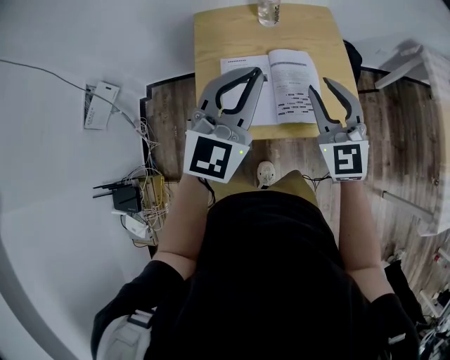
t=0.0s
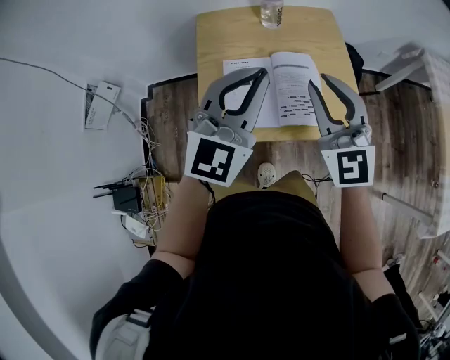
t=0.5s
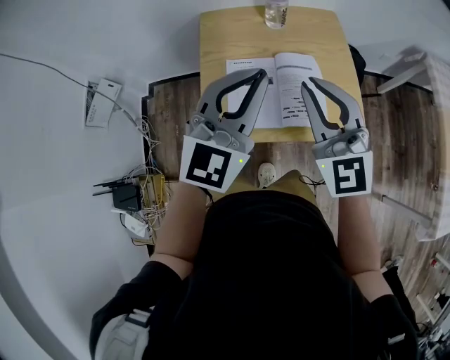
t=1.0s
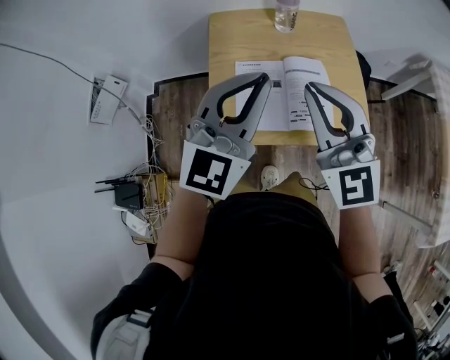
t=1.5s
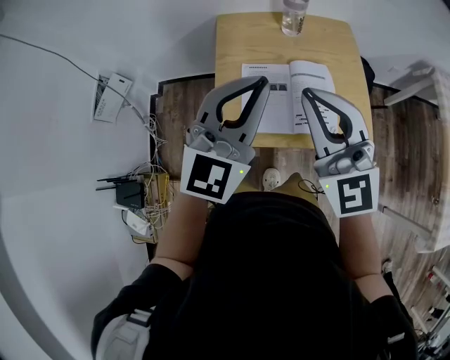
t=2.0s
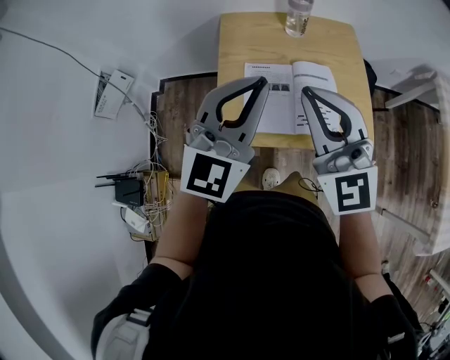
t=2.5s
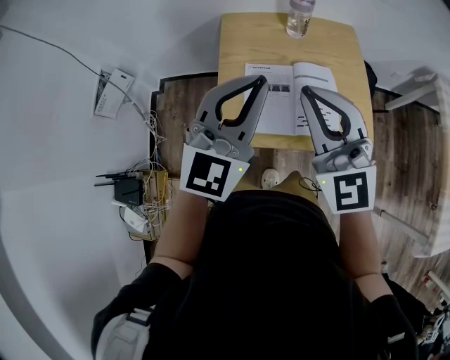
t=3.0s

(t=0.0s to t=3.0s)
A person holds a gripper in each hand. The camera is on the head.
t=0.0s - t=1.5s: The right gripper shifts about 10 cm upward and to the left, and closes up.
t=1.5s - t=3.0s: The grippers move only a little.

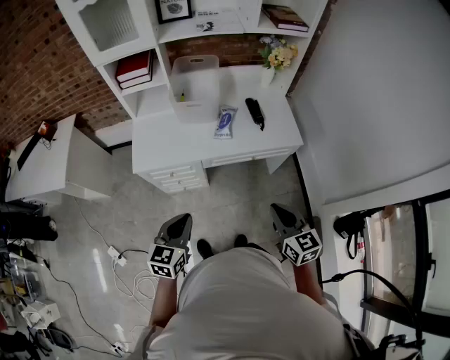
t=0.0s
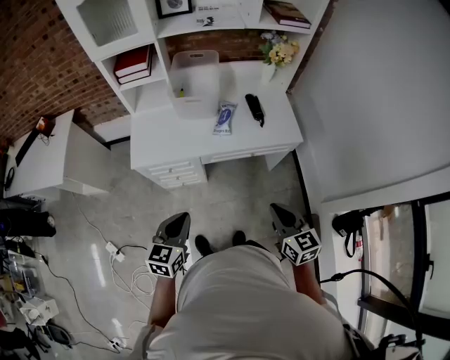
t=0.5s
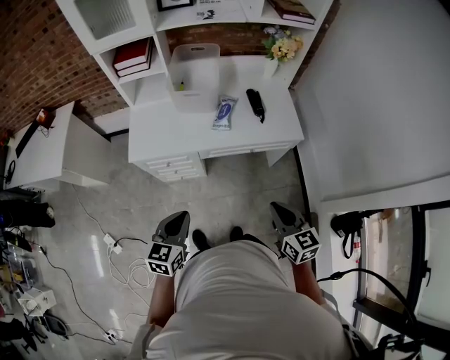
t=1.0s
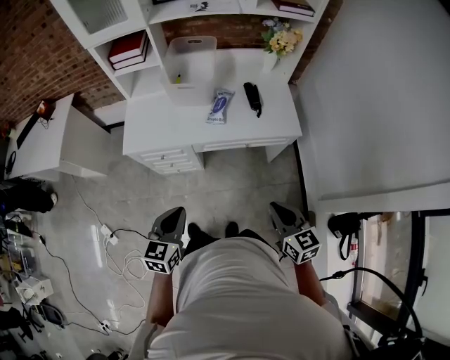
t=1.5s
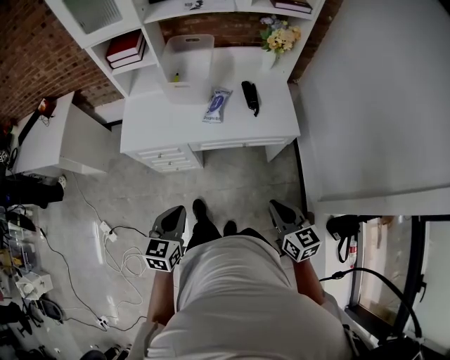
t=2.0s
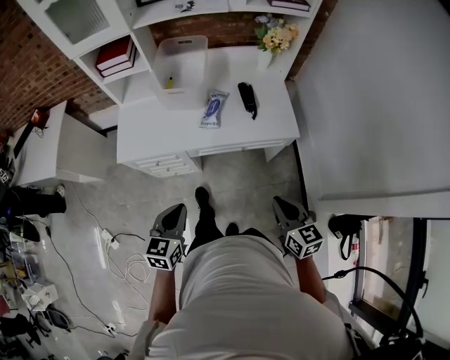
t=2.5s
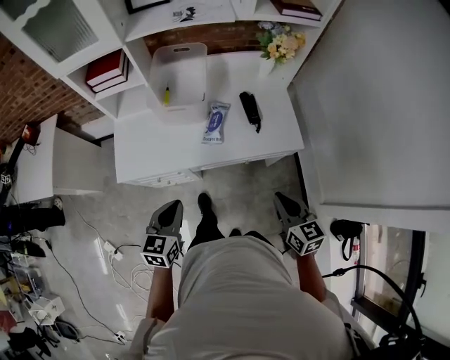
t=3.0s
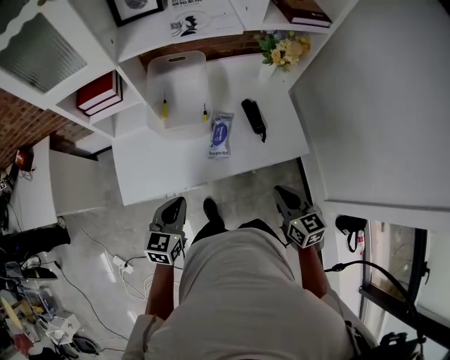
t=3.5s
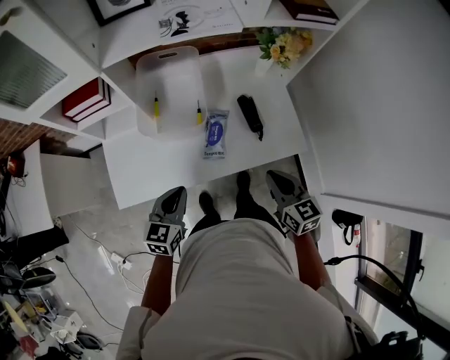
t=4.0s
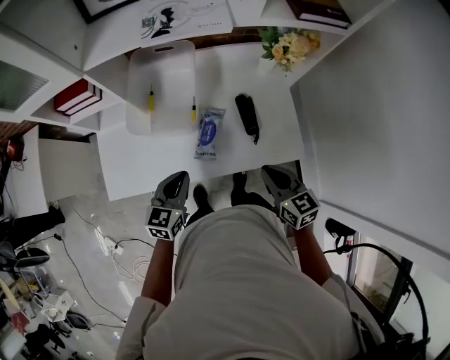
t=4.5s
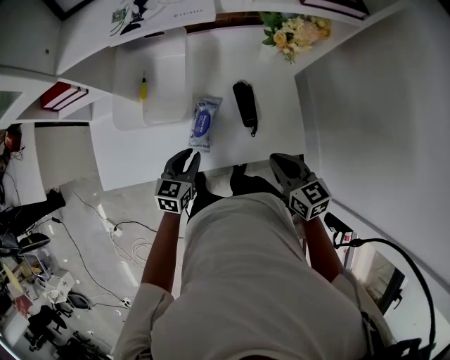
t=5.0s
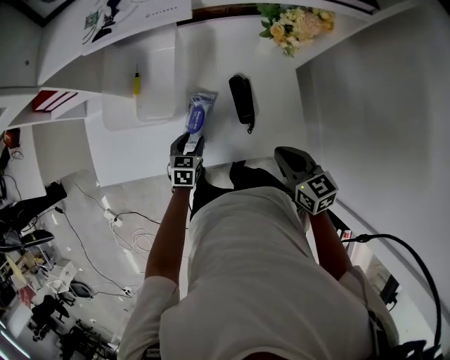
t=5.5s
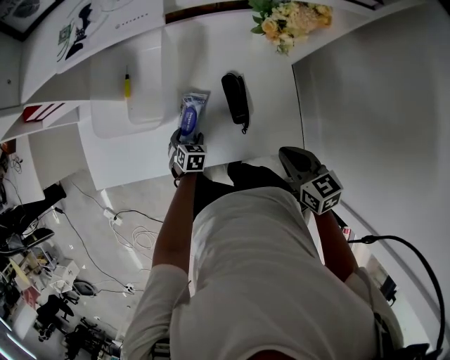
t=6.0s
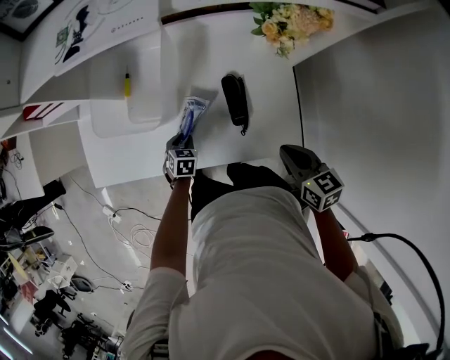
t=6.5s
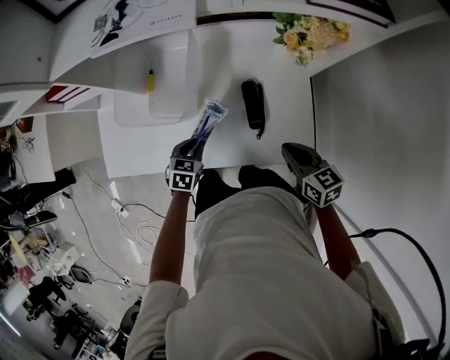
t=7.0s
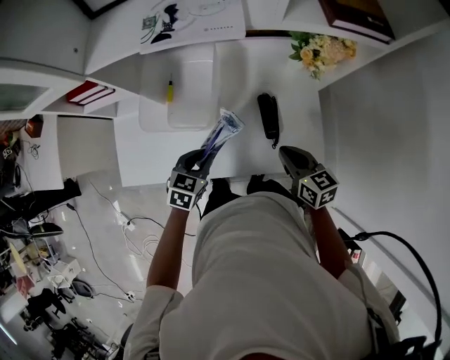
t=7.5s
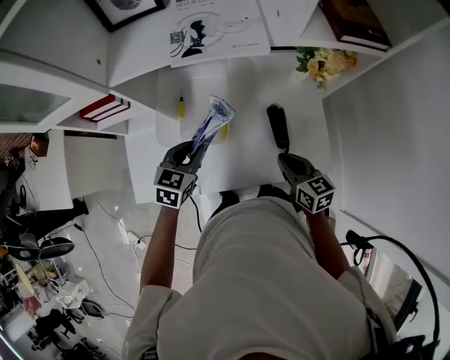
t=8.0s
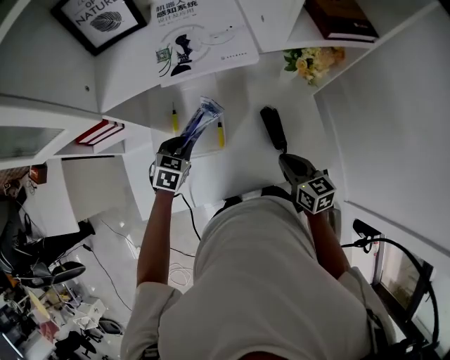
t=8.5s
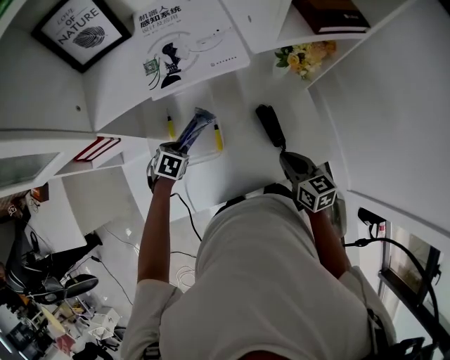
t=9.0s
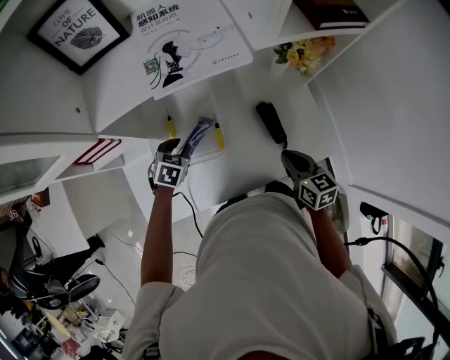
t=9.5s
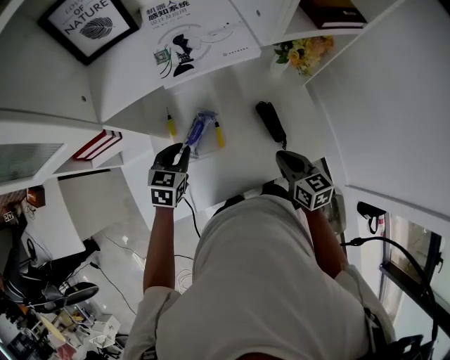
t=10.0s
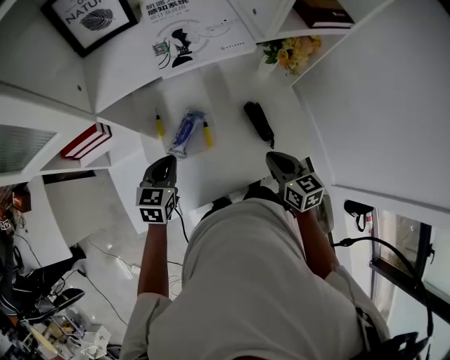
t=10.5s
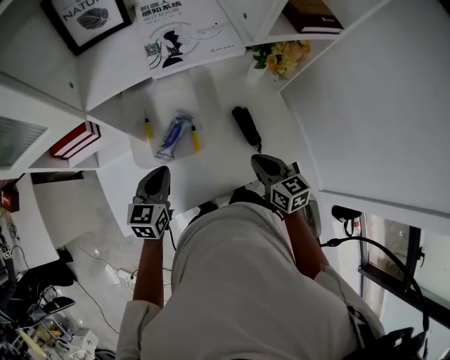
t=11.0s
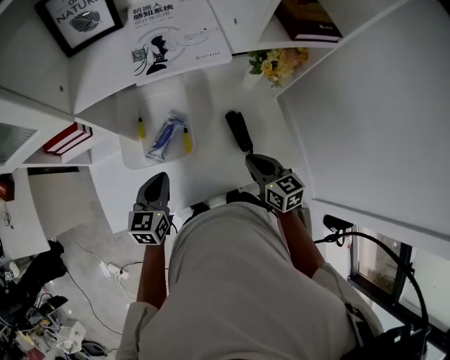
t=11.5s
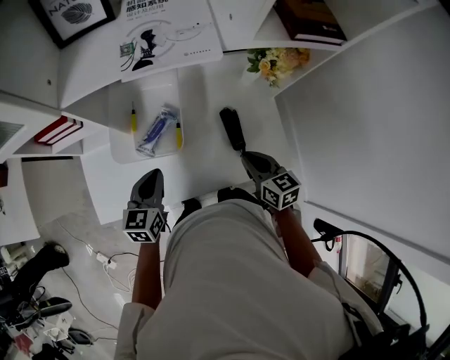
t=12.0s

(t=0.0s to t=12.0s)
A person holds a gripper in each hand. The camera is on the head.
t=0.0s - t=2.0s: The grippers both shift to the right by approximately 10 cm.
t=2.0s - t=4.0s: The grippers both shift forward by some 30 cm.
t=4.0s - t=6.0s: The left gripper moves downward, to the right and forward, roughly 35 cm, angles its fingers downward, by some 40 degrees, and opens up. Meanwhile the right gripper goes approximately 20 cm to the right, forward and downward, and rotates some 20 degrees.
t=6.0s - t=8.0s: The left gripper heads upward, covering some 30 cm, swivels roughly 30 degrees, and closes its fingers, while the right gripper shifts some 15 cm to the left and forward.
t=8.0s - t=10.0s: The left gripper shifts approximately 5 cm forward and to the left, and reaches approximately 15 cm downward, then returns.
t=10.0s - t=12.0s: The left gripper heads backward, covering roughly 10 cm, and turns by about 30 degrees.

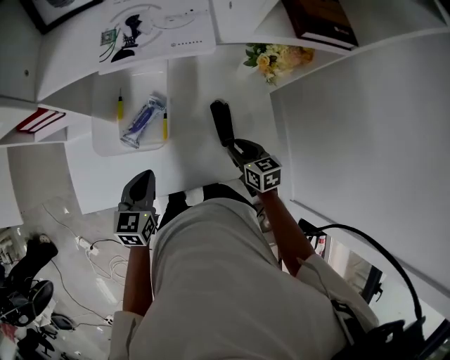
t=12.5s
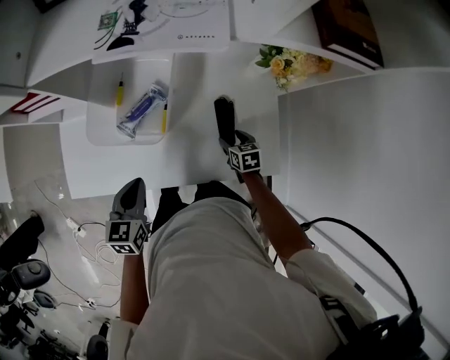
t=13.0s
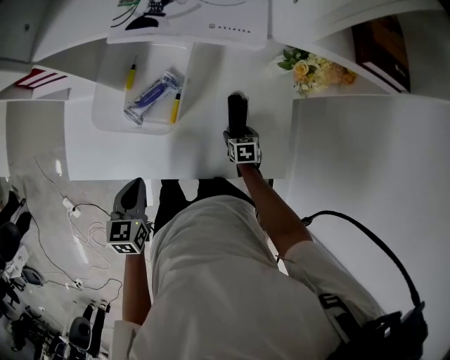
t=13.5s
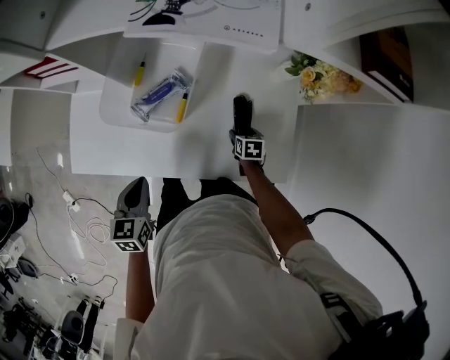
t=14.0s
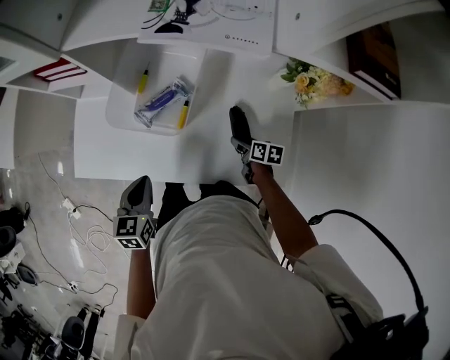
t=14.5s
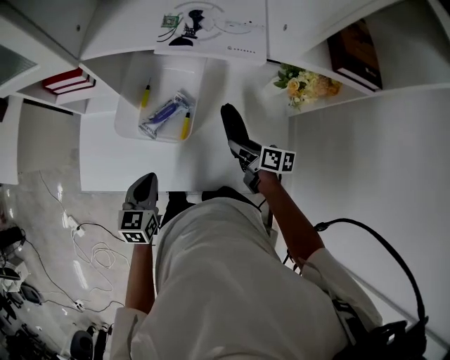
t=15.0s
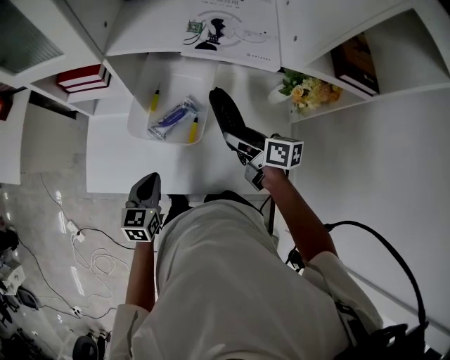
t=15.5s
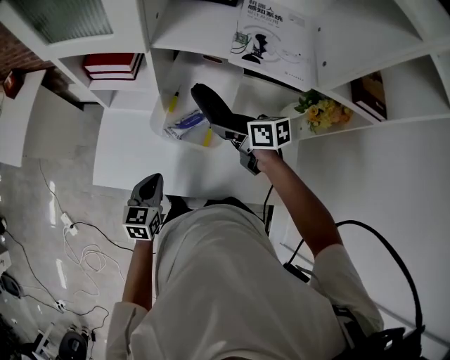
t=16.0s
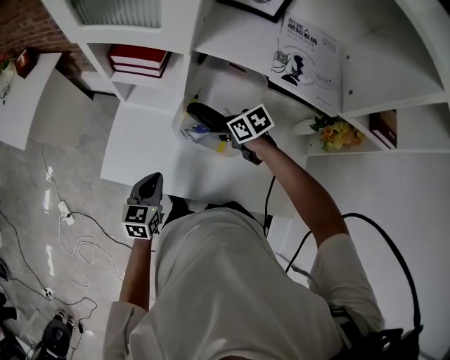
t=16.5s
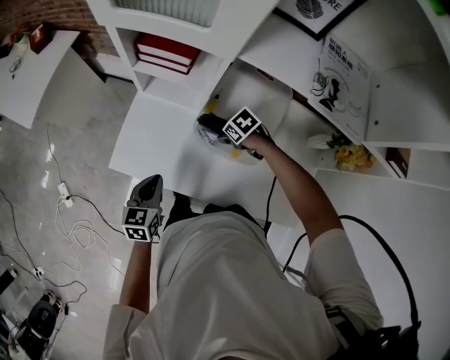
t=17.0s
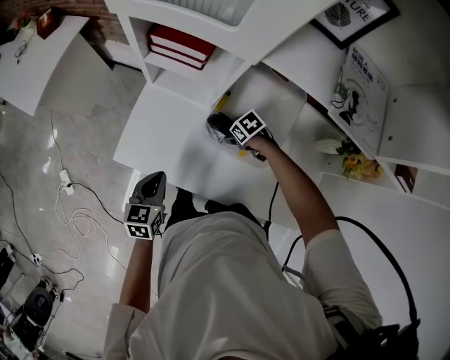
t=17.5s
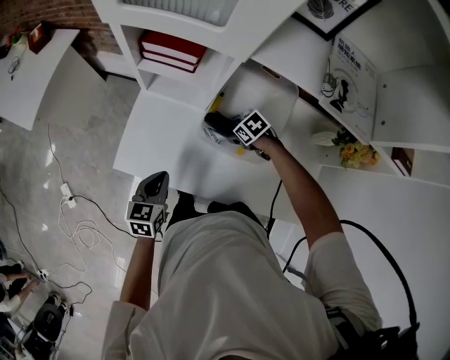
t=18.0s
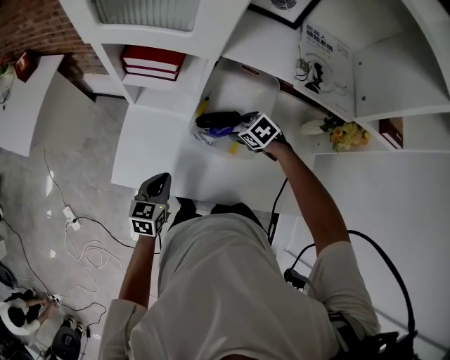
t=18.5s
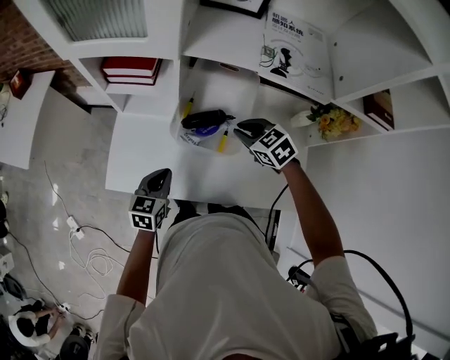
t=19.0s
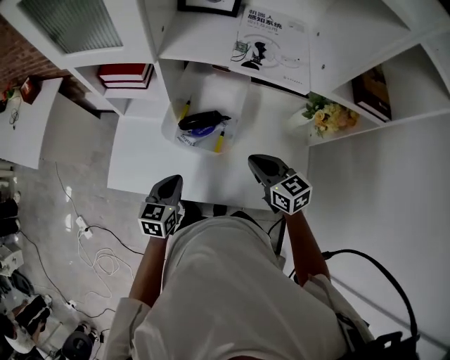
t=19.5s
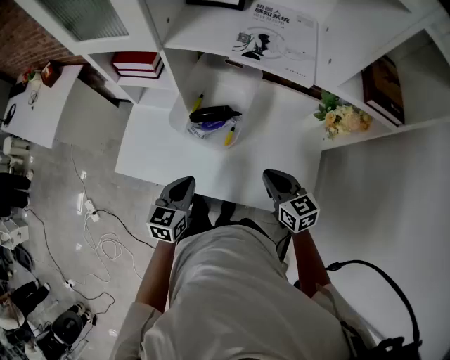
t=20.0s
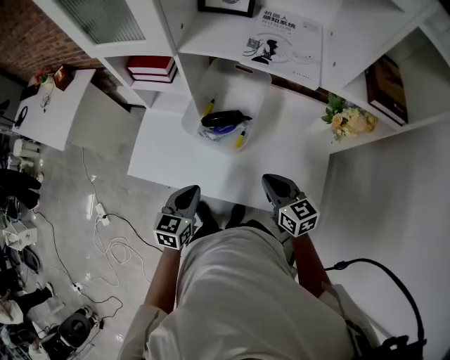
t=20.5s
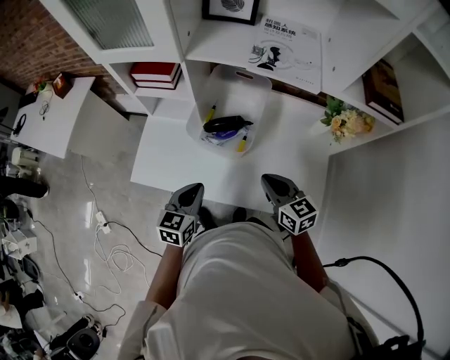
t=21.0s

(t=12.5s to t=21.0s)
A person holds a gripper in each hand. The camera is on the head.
t=12.5s - t=14.5s: The right gripper moves downward, roughly 15 cm, turns by about 30 degrees, and opens up; the left gripper shifts some 5 cm backward.
t=14.5s - t=16.5s: The right gripper goes about 35 cm to the left, forward and upward, and rolls counterclockwise, seen from behind, by approximately 50 degrees; the left gripper travels to the left and forward by some 15 cm.
t=16.5s - t=19.0s: The right gripper travels downward and back again, some 15 cm each way, rotates approximately 30 degrees, and closes up.
t=19.0s - t=21.0s: The right gripper goes approximately 15 cm backward, and changes its angle by approximately 30 degrees; the left gripper is displaced backward, to the right and upward by roughly 15 cm.

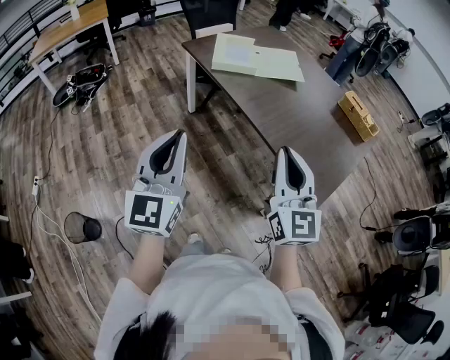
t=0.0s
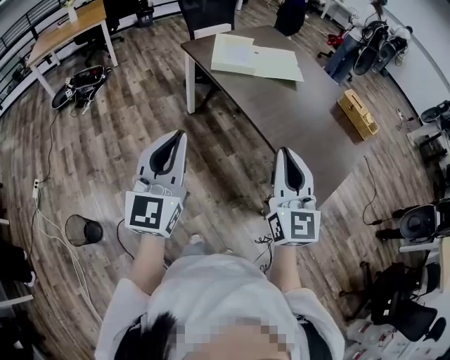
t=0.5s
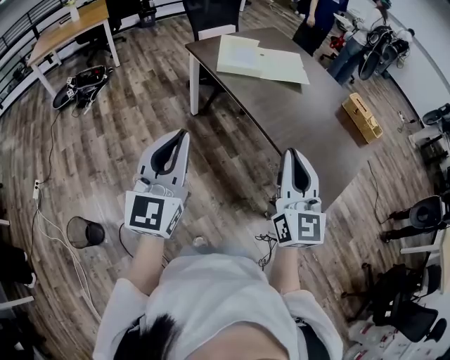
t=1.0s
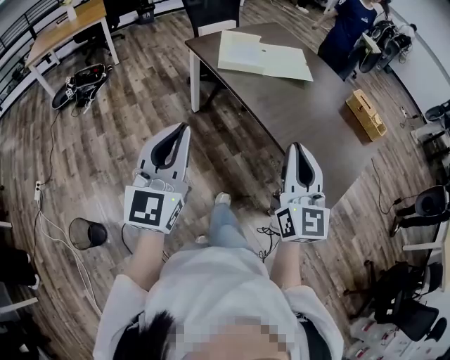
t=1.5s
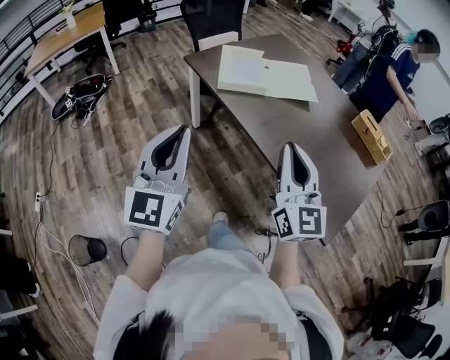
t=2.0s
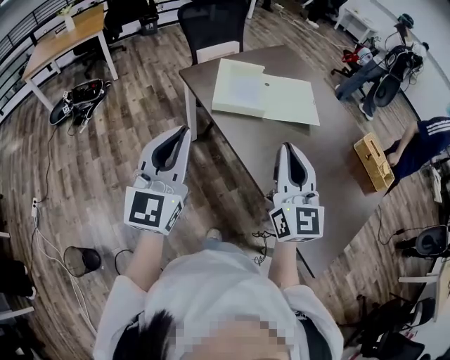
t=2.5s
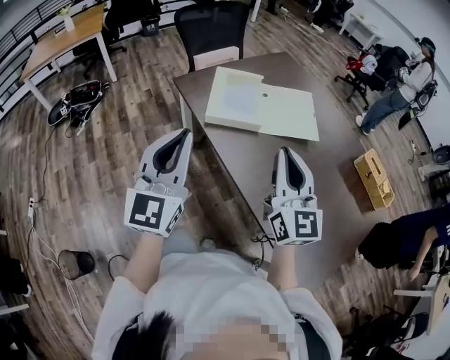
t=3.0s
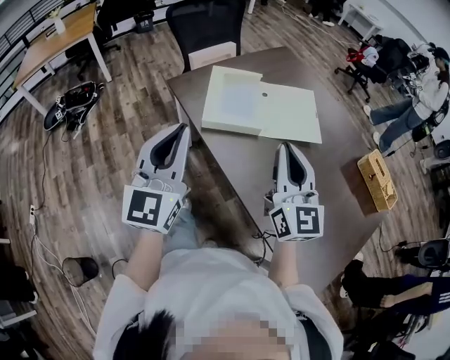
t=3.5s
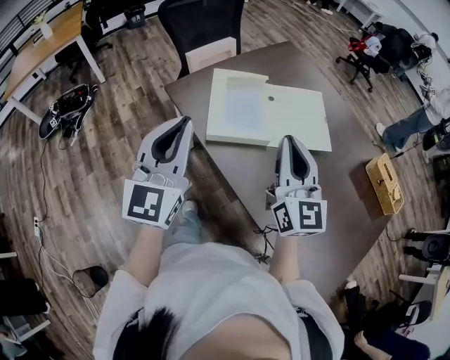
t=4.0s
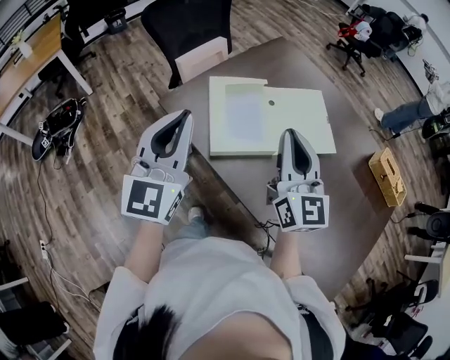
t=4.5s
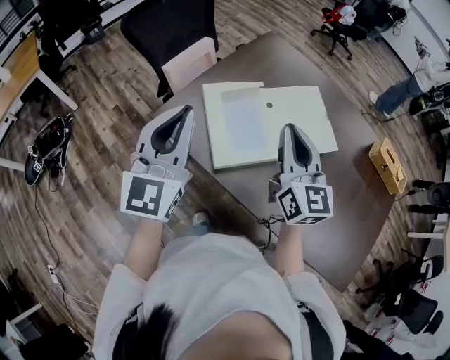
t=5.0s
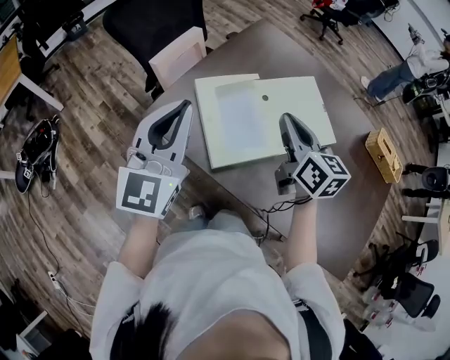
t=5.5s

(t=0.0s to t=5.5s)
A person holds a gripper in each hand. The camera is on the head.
t=0.0s - t=2.0s: The two grippers go about 15 cm forward.
t=2.0s - t=3.5s: Both grippers move forward, about 30 cm.
t=3.5s - t=5.5s: The two grippers go roughly 30 cm forward. The left gripper swivels roughly 20 degrees, while the right gripper turns by approximately 30 degrees.
